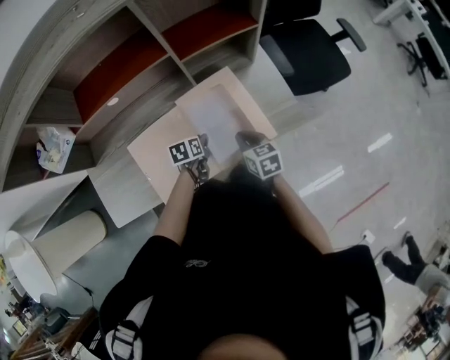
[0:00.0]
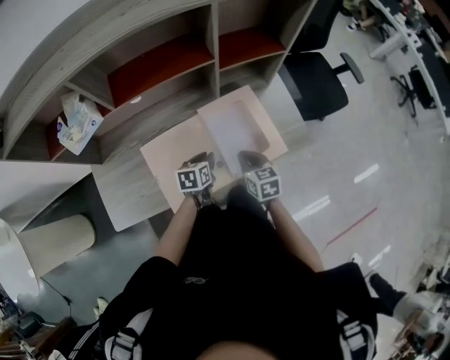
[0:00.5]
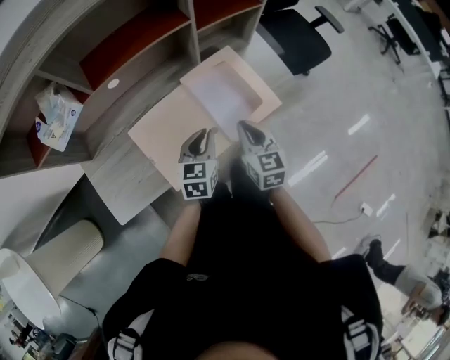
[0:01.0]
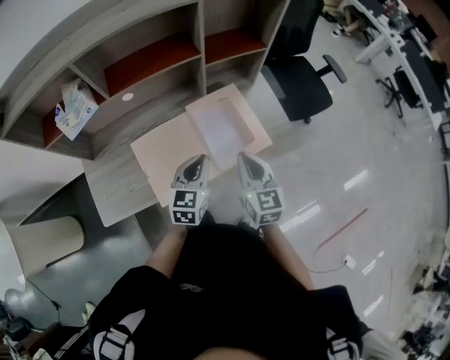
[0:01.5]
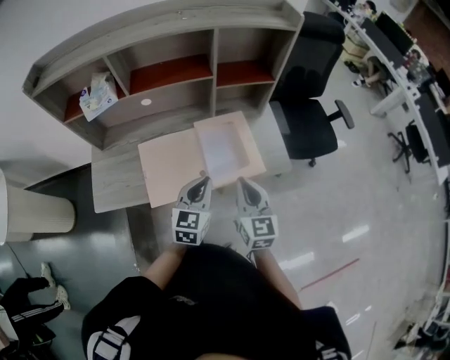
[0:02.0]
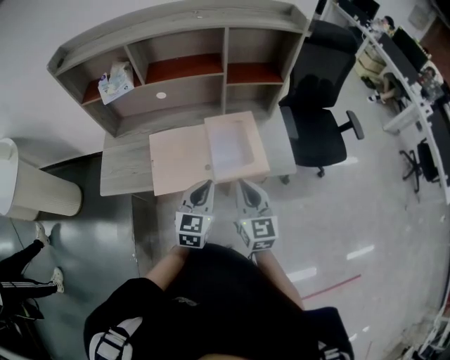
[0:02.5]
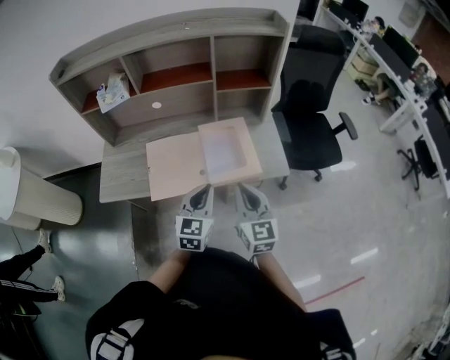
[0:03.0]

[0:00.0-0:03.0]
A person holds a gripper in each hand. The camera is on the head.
0.0 to 1.5 s: Both grippers travel together upward and backward, about 25 cm. The right gripper rotates approximately 30 degrees. The left gripper tilts its fingers roughly 30 degrees upward.
1.5 to 3.0 s: The left gripper shifts approximately 15 cm backward, to the right and upward; the right gripper goes about 10 cm backward and to the right.

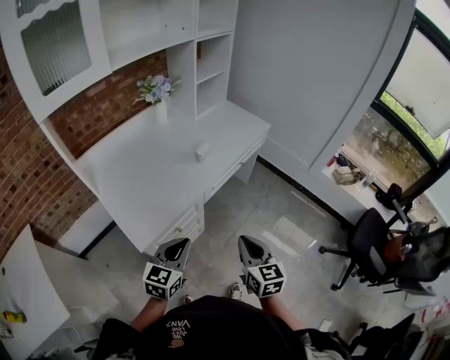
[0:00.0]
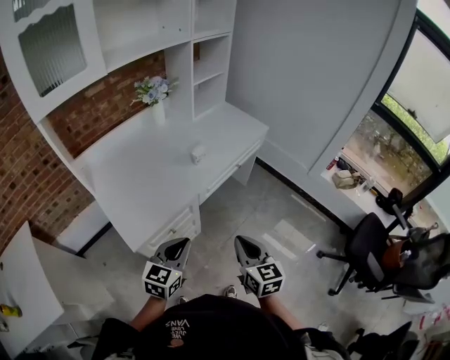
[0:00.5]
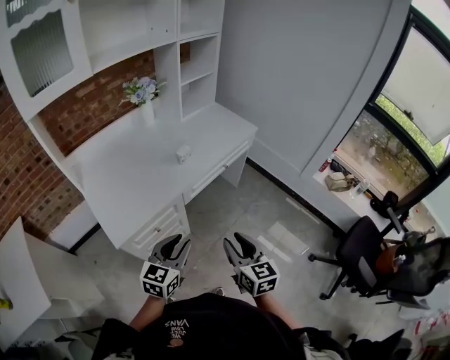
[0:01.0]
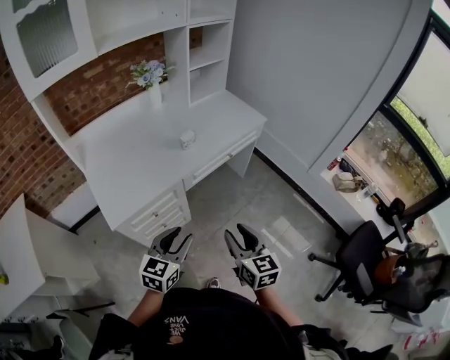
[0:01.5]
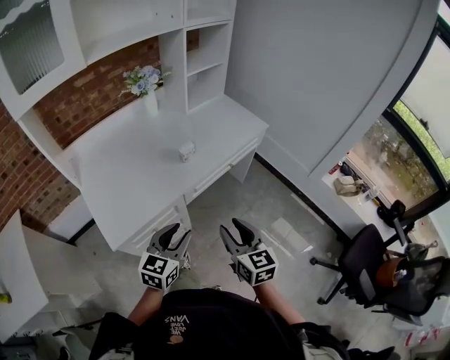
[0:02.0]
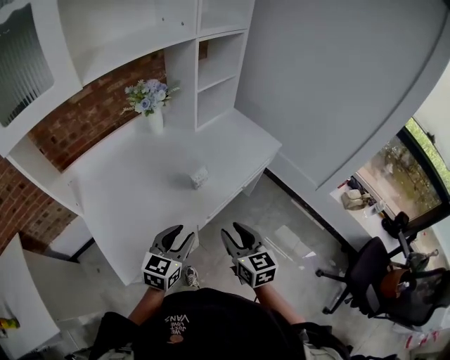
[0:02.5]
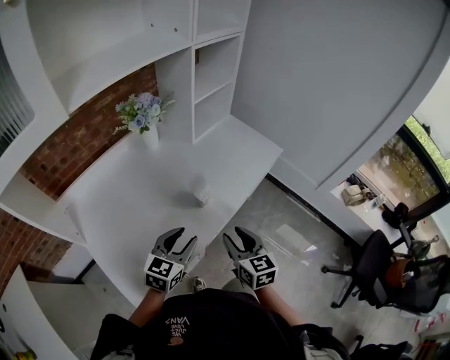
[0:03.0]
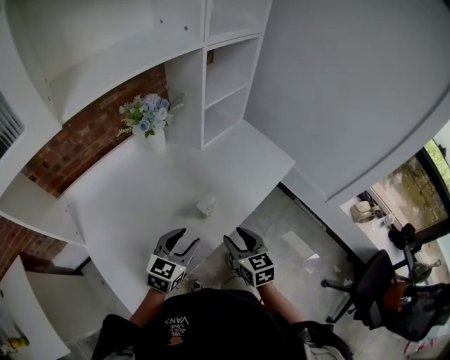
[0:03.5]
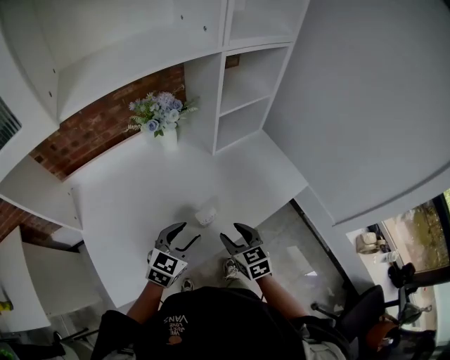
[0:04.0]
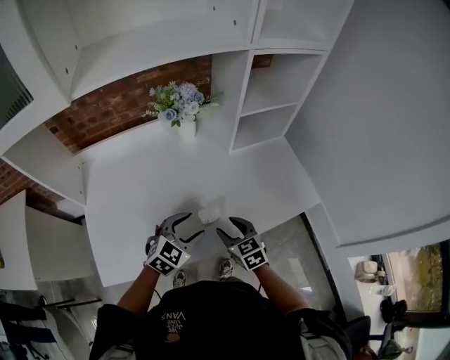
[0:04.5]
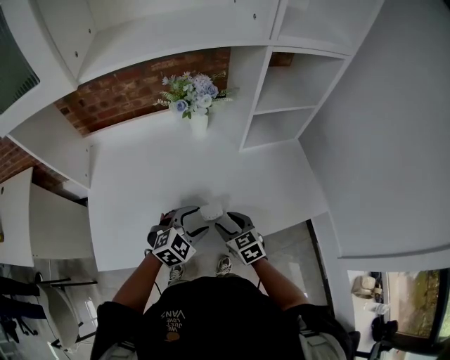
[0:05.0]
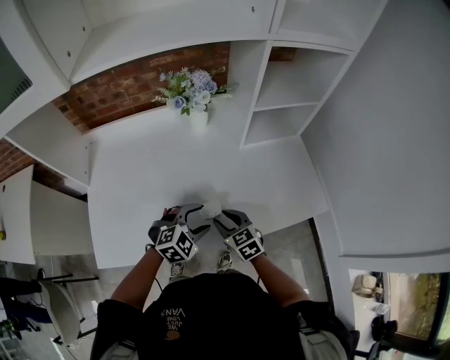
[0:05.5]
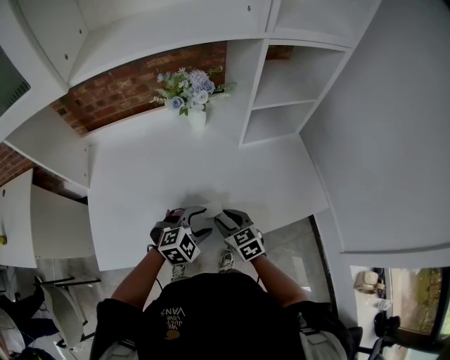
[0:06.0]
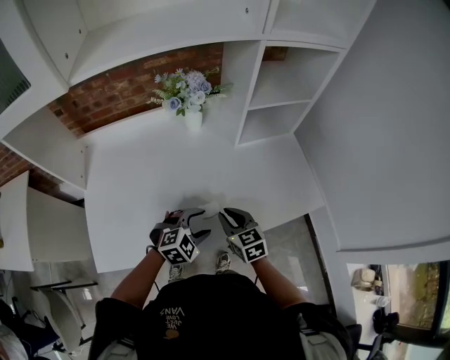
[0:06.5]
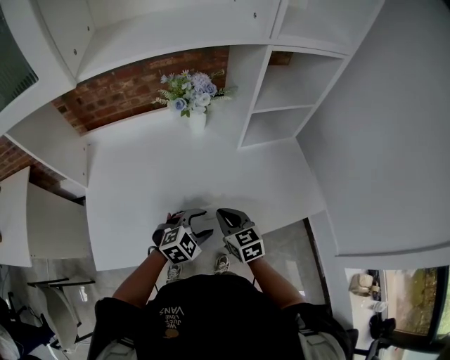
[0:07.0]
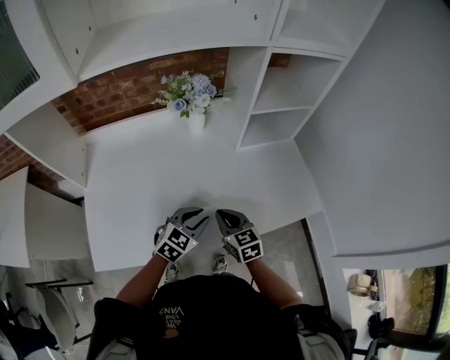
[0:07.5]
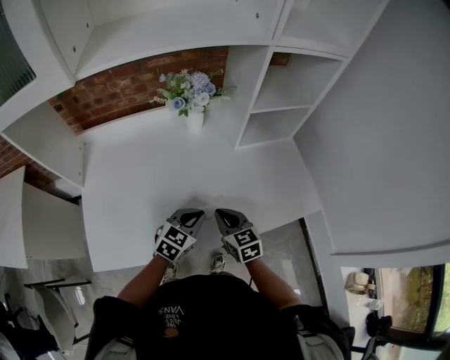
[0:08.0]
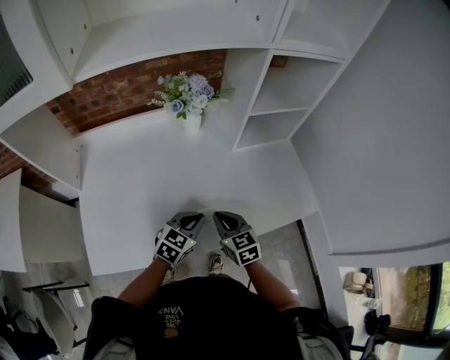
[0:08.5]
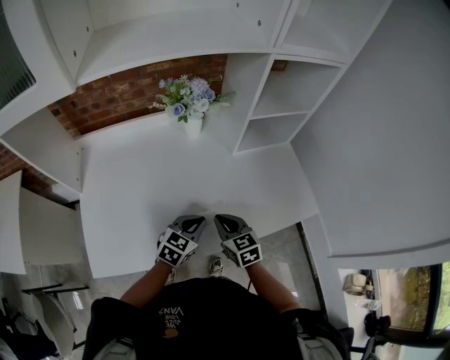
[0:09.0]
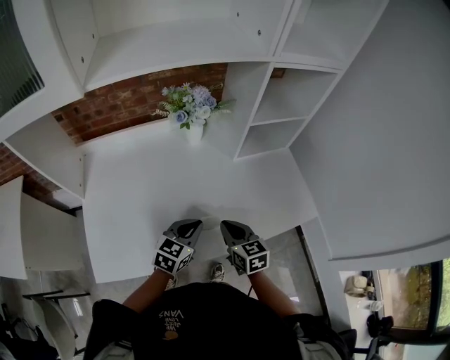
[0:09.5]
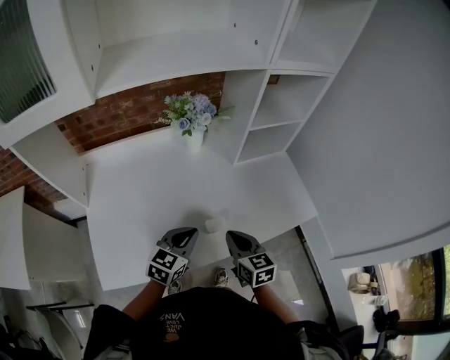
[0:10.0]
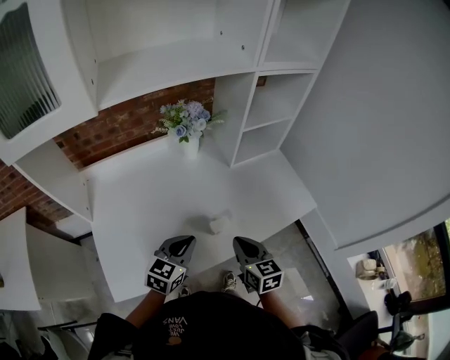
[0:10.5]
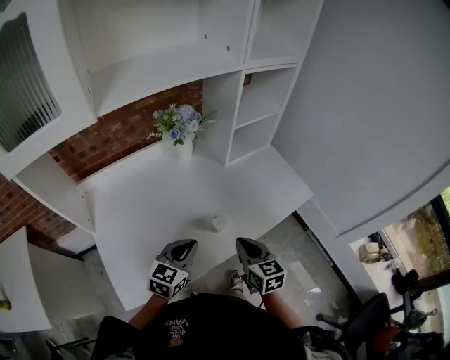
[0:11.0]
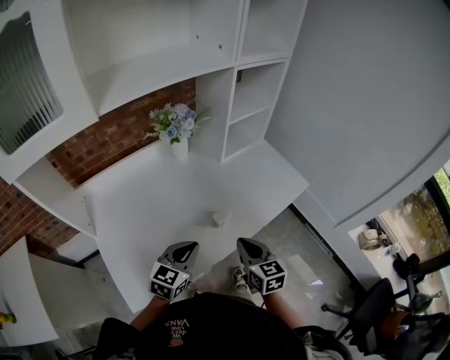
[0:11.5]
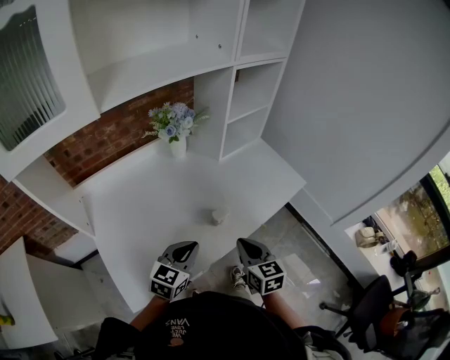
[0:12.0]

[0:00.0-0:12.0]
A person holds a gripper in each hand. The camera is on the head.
0.0 to 2.0 s: The right gripper moves forward and to the right, some 10 cm, and opens up, while the left gripper moves to the right and forward, roughly 15 cm, and opens.
2.0 to 4.0 s: Both grippers move forward, approximately 35 cm. The right gripper rotates approximately 20 degrees.
4.0 to 6.0 s: The left gripper heads downward and to the right, covering some 10 cm, and swivels some 30 degrees, while the right gripper moves downward and forward, approximately 10 cm, and turns by approximately 20 degrees.
6.0 to 8.0 s: The right gripper closes up; the left gripper turns by approximately 40 degrees, and closes its fingers.
8.0 to 10.0 s: The right gripper moves upward, about 5 cm. Meanwhile the left gripper heads upward and to the left, covering some 10 cm.
10.0 to 12.0 s: Both grippers move backward, approximately 10 cm.

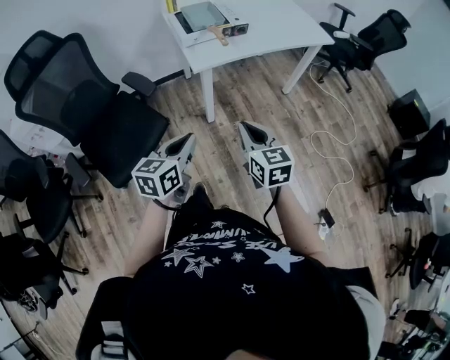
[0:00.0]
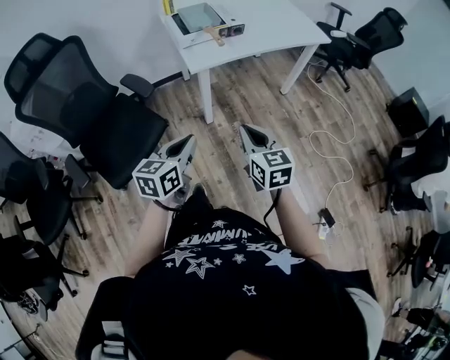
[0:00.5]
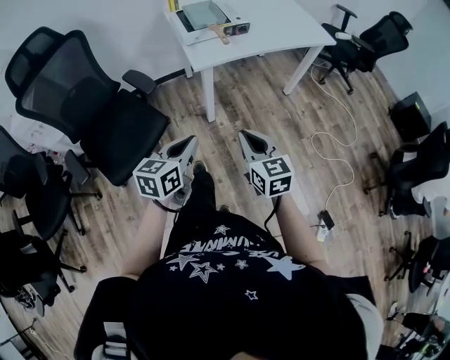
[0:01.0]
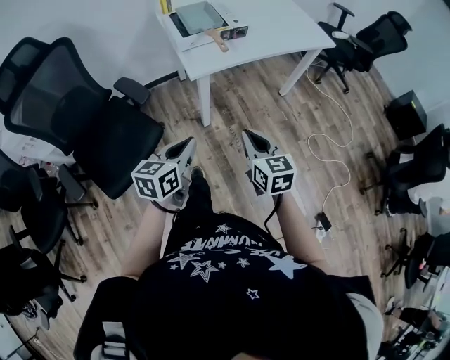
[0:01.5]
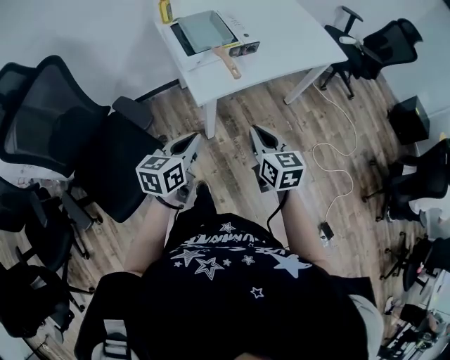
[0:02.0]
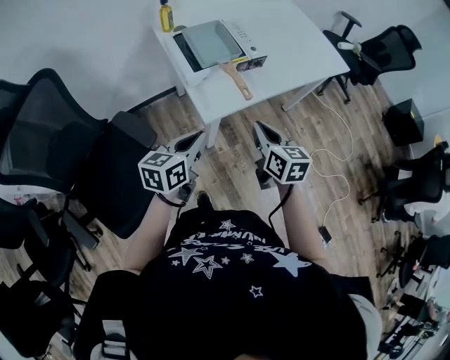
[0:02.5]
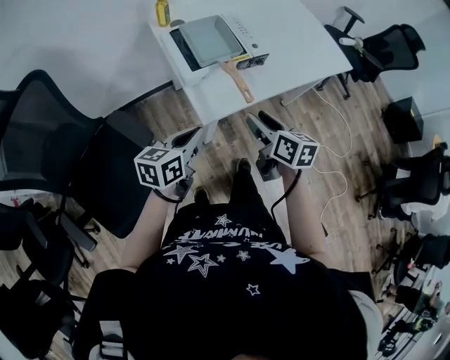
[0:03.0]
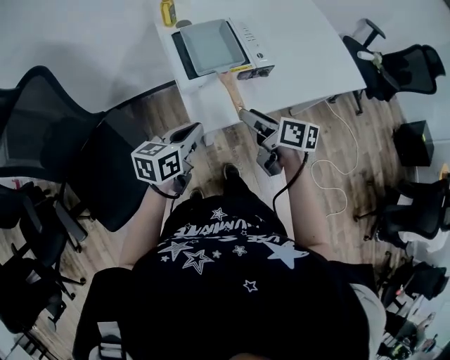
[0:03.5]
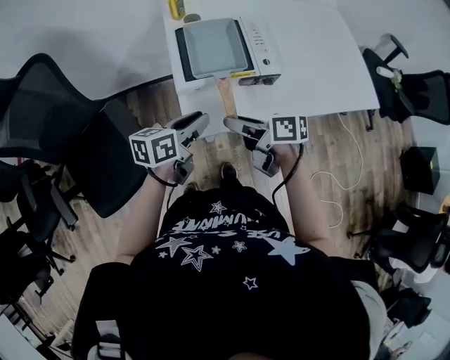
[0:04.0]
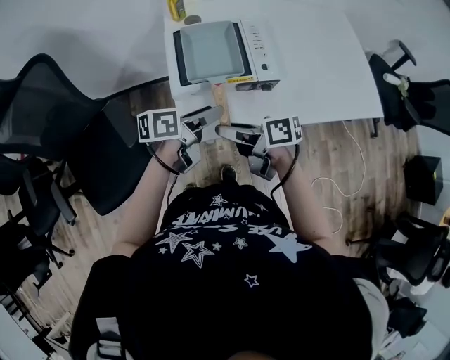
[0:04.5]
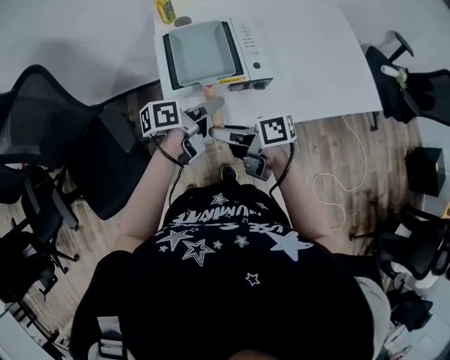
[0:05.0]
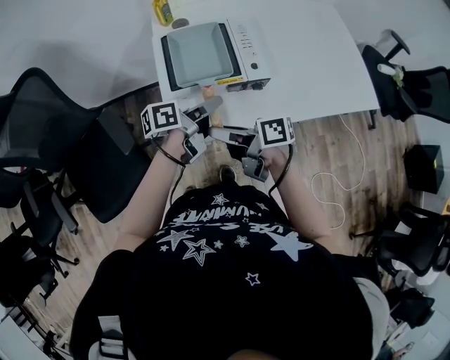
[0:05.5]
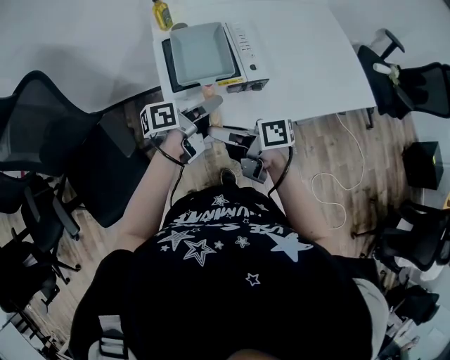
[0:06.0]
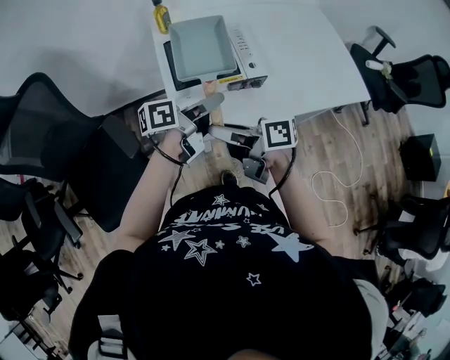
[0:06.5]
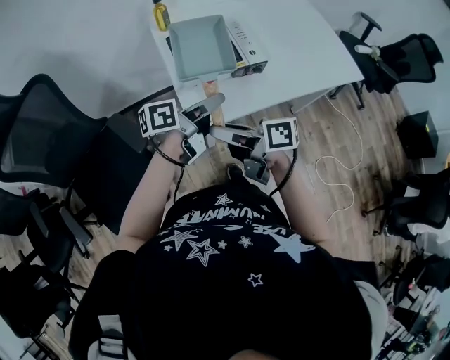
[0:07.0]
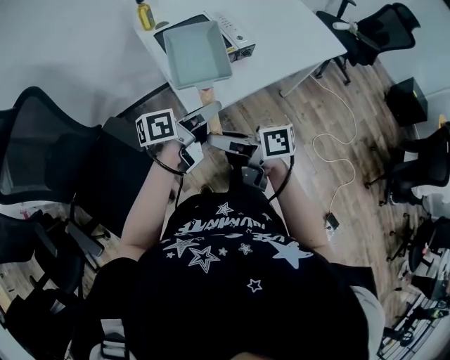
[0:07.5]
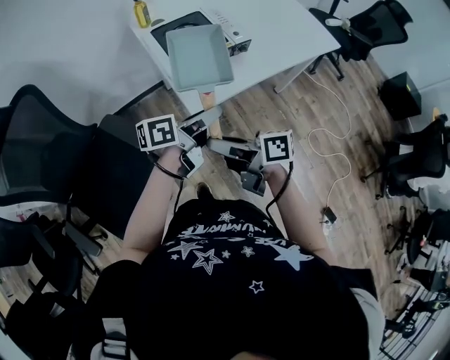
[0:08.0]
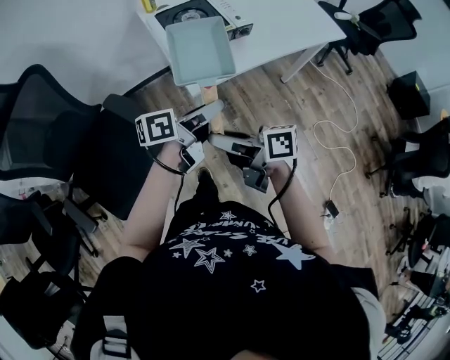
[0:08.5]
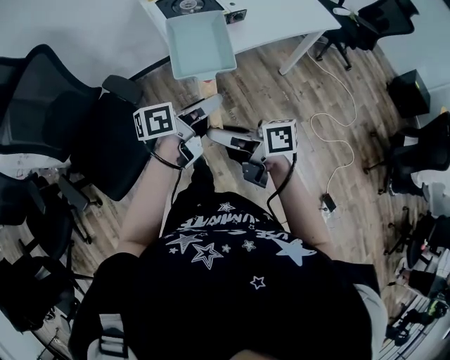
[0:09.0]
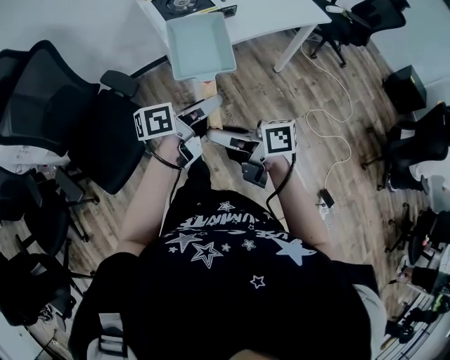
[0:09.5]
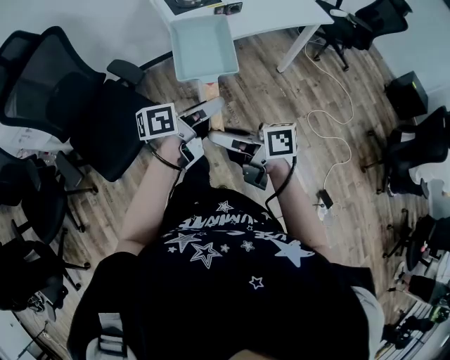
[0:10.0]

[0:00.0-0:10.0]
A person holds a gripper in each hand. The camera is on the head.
0.0 to 2.0 s: The grippers both shift forward by some 20 cm.
2.0 to 4.0 s: The left gripper changes place by some 25 cm. The right gripper changes place by some 25 cm, swivels some 60 degrees, and opens.
4.0 to 6.0 s: The left gripper ends up approximately 10 cm from where it was, and turns by about 30 degrees.
6.0 to 8.0 s: The two grippers go approximately 20 cm backward and to the left. The left gripper rotates roughly 20 degrees.
8.0 to 10.0 s: Both grippers move backward, some 25 cm.

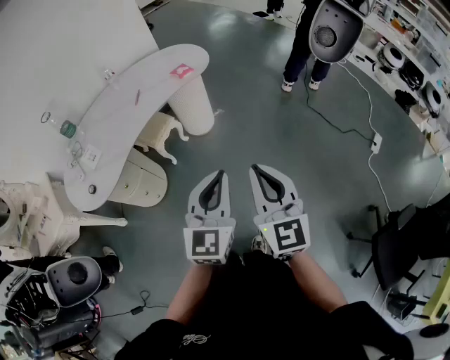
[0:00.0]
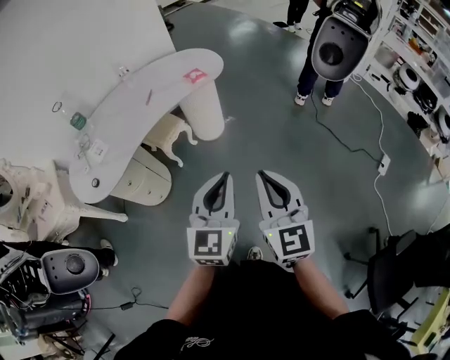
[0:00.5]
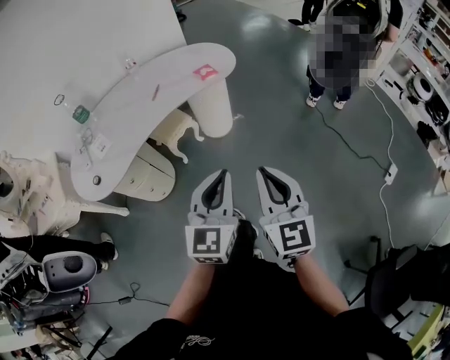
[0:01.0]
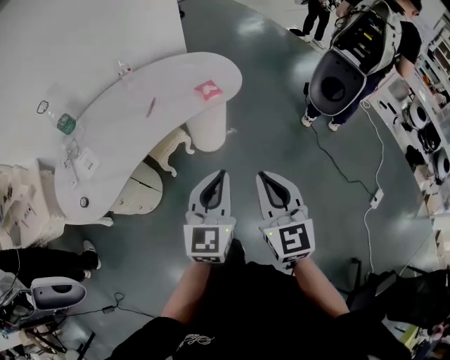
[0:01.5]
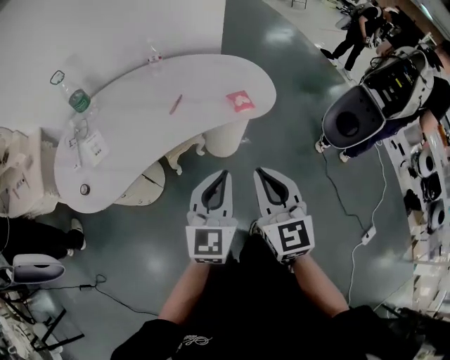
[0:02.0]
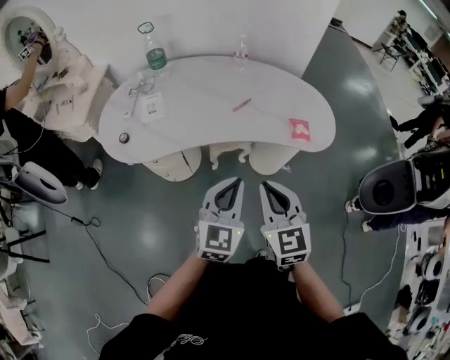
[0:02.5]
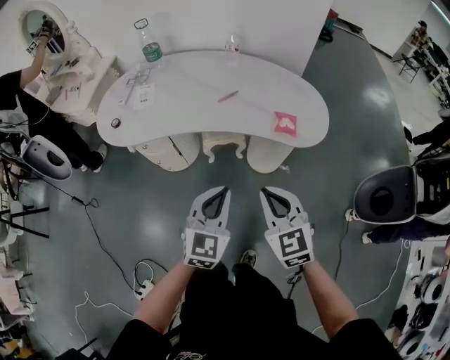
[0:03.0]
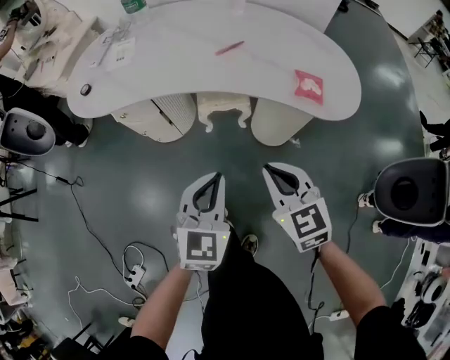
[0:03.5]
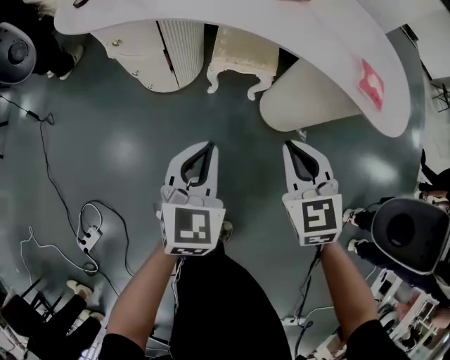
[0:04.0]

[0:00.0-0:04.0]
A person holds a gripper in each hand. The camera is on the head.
0.0 to 2.0 s: The grippers both shift forward by some 30 cm. The left gripper turns by roughly 20 degrees. The right gripper changes its angle by about 30 degrees.
2.0 to 4.0 s: The two grippers go some 35 cm downward. The left gripper rotates roughly 50 degrees; the right gripper turns by approximately 50 degrees.
